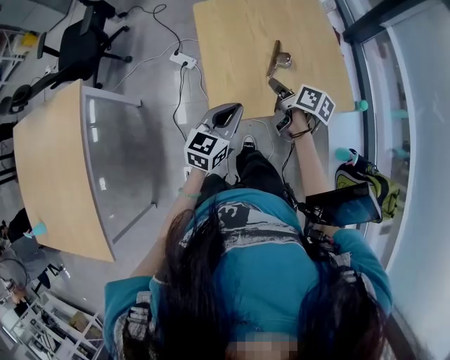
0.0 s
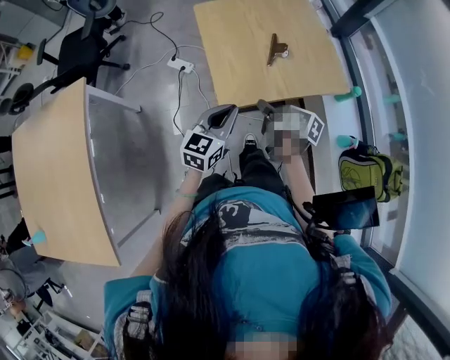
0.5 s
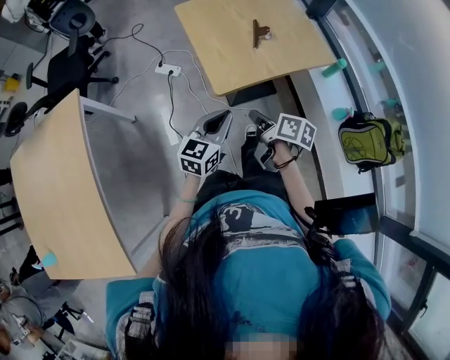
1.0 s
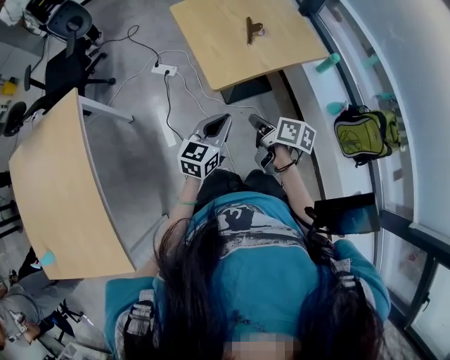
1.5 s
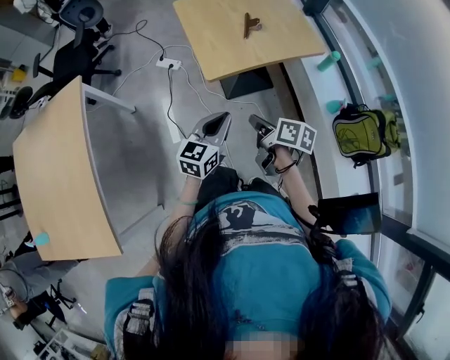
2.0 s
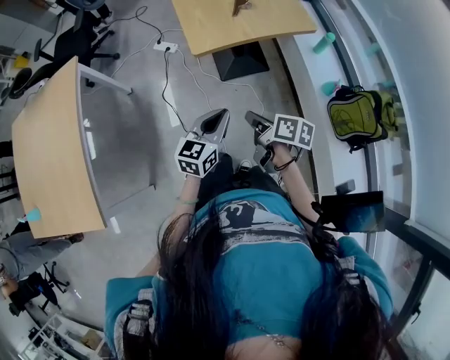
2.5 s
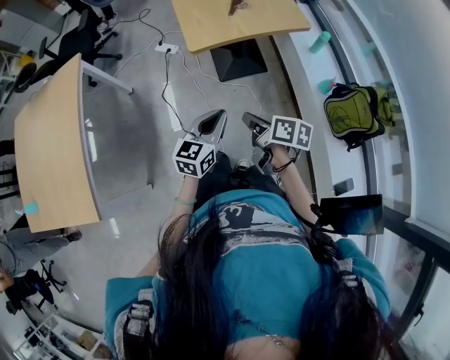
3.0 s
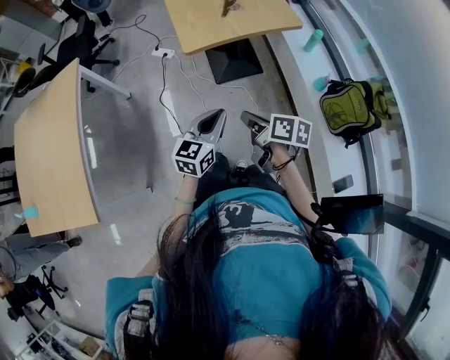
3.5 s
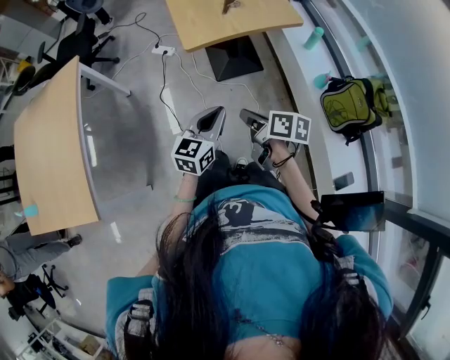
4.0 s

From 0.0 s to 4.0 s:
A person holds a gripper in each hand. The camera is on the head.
From 0.0 s to 2.0 s: The two grippers go approximately 30 cm backward.
From 2.0 s to 4.0 s: The left gripper heads backward and to the right, covering roughly 20 cm. Meanwhile the right gripper travels backward by approximately 15 cm.

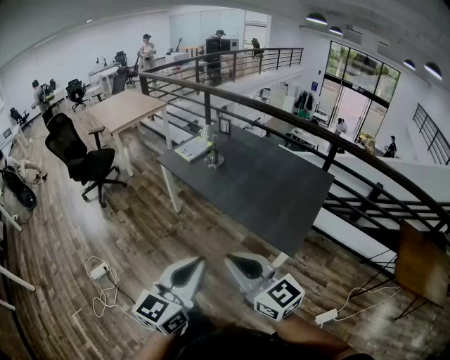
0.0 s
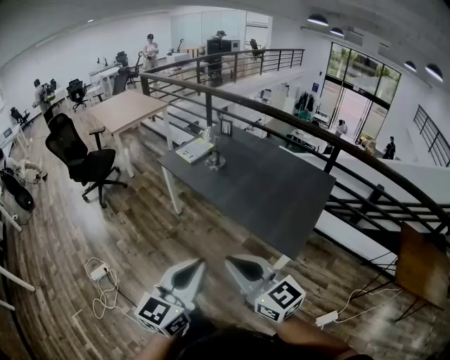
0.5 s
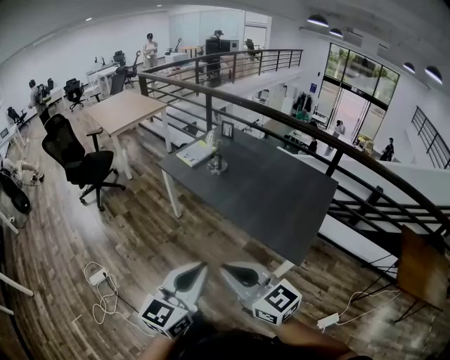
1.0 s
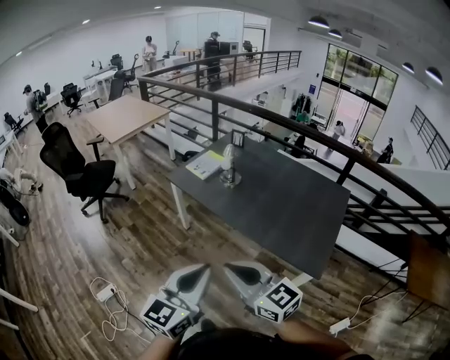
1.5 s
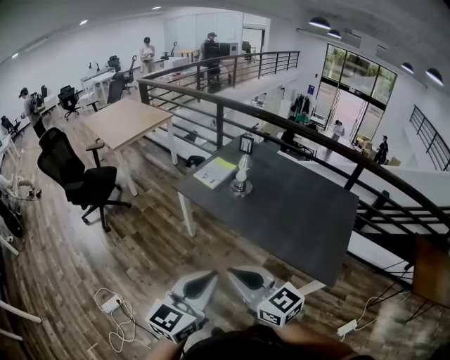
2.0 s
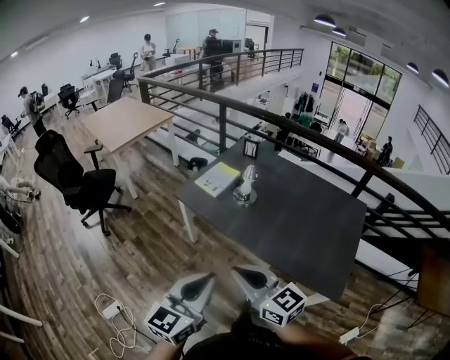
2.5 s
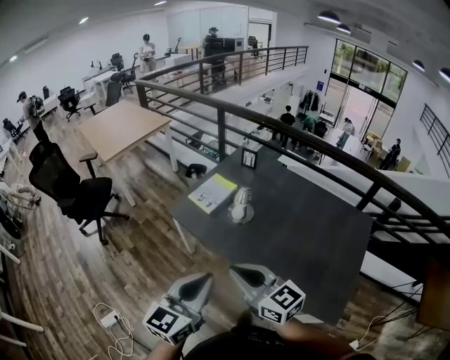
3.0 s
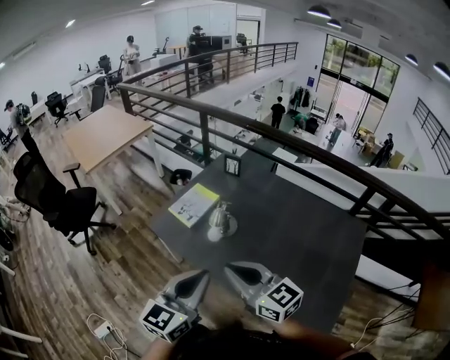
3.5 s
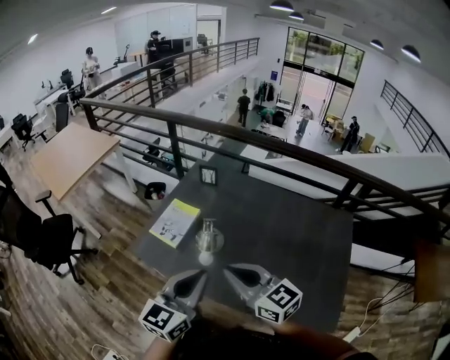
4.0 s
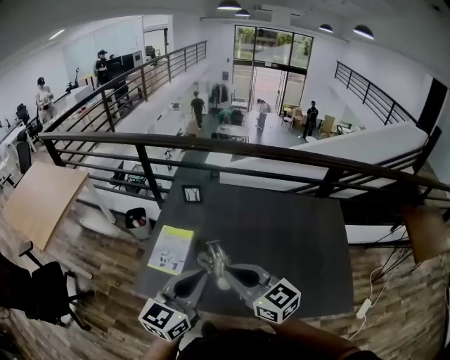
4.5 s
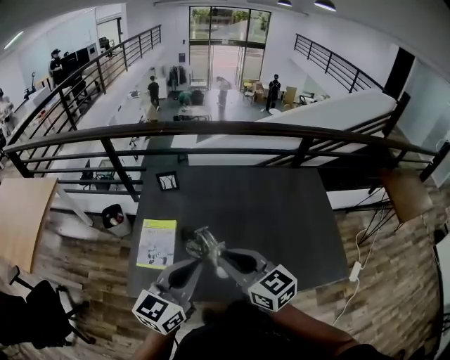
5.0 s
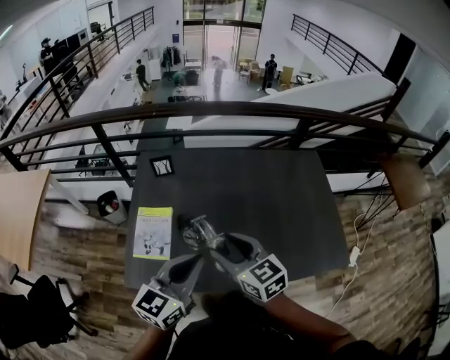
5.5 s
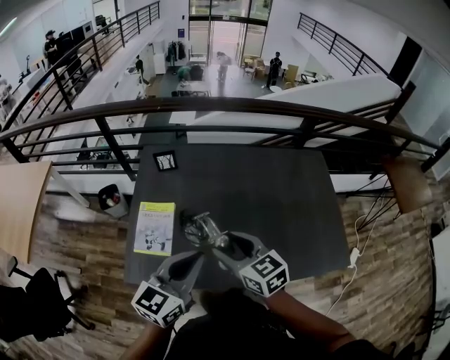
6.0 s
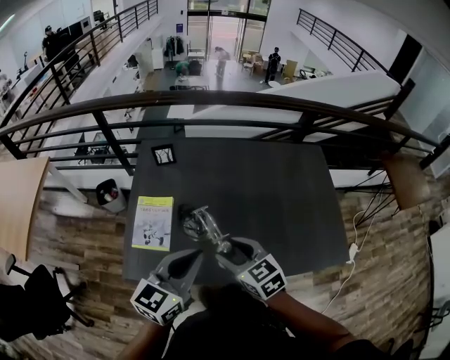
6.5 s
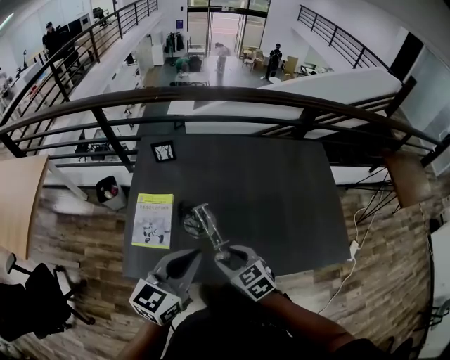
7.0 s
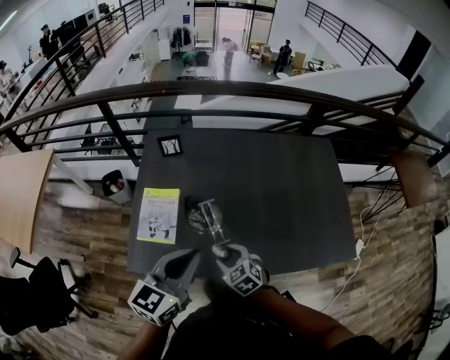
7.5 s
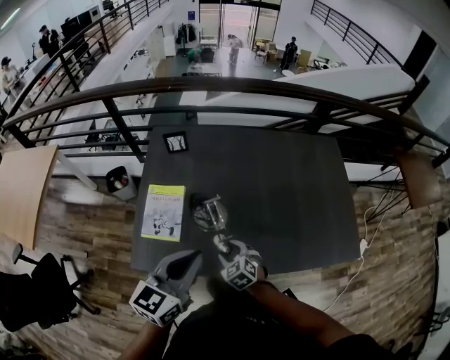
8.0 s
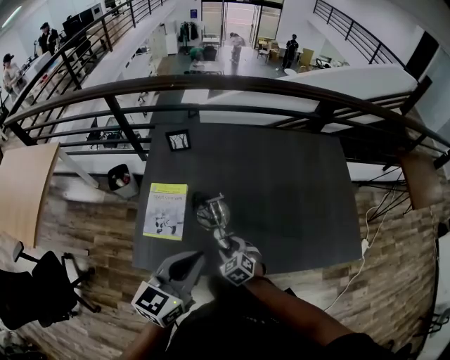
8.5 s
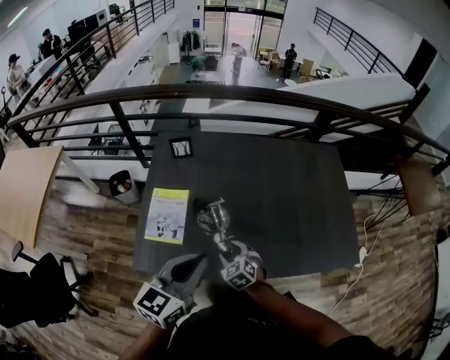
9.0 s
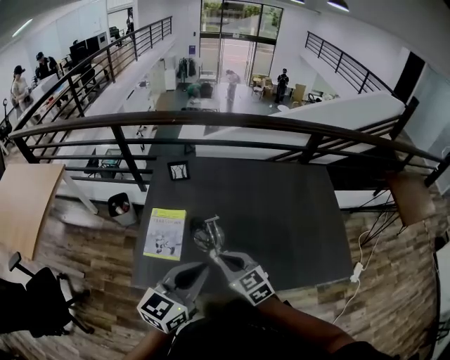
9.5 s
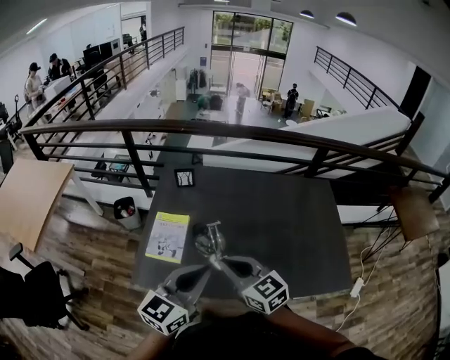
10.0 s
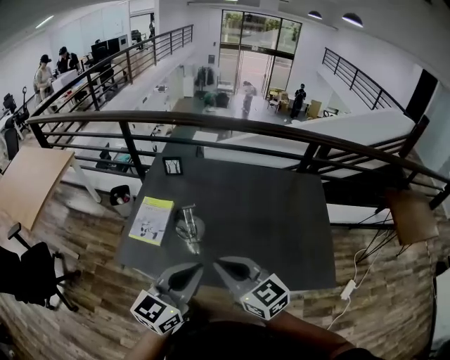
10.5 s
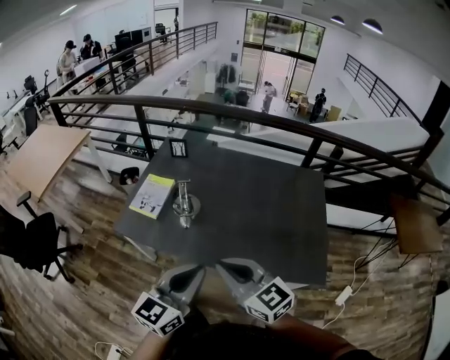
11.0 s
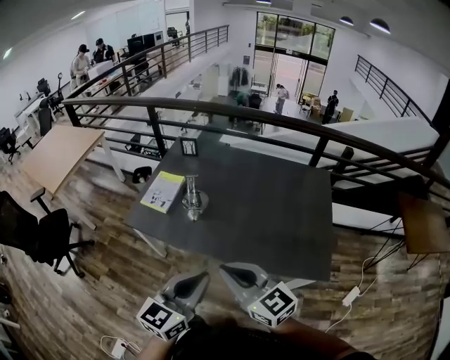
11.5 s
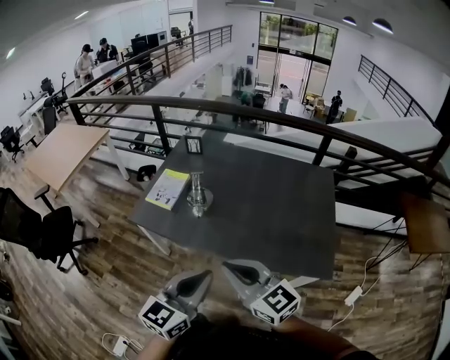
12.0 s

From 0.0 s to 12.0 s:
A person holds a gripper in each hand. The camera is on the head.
From 0.0 s to 2.0 s: The grippers both shift forward and to the left by approximately 25 cm.
From 2.0 s to 4.0 s: The pair of grippers is taken forward, approximately 40 cm.
From 4.0 s to 6.0 s: The left gripper changes place by approximately 10 cm, and changes its angle by some 30 degrees. The right gripper shifts by roughly 15 cm, turns by some 40 degrees, and opens.
From 6.0 s to 8.0 s: The right gripper moves downward, approximately 25 cm, and turns by approximately 30 degrees.
From 8.0 s to 10.0 s: The left gripper shifts approximately 5 cm upward; the right gripper travels upward by roughly 25 cm, points its fingers approximately 30 degrees further upward, and closes up.
From 10.0 s to 12.0 s: Both grippers move backward and to the right, about 30 cm.

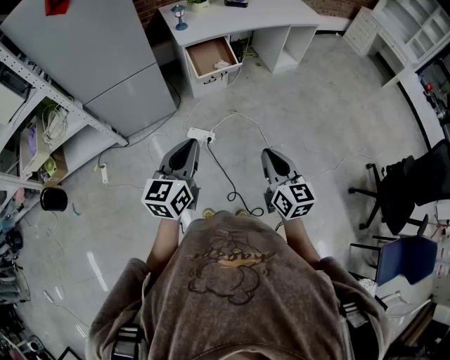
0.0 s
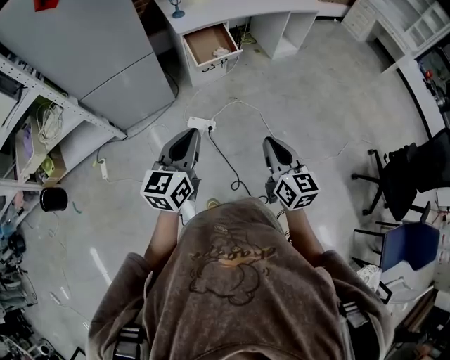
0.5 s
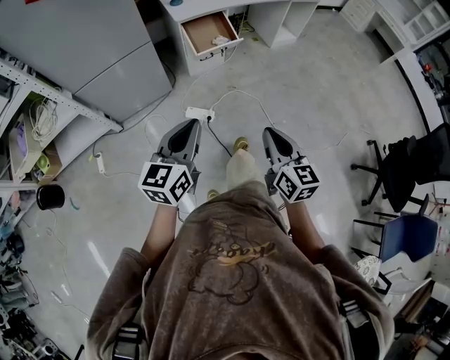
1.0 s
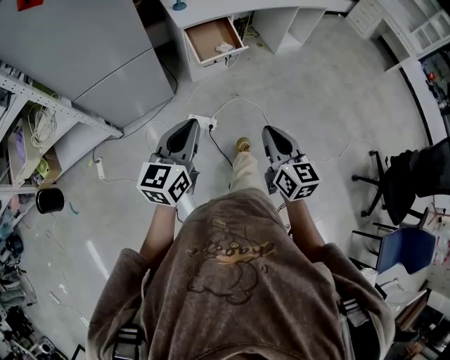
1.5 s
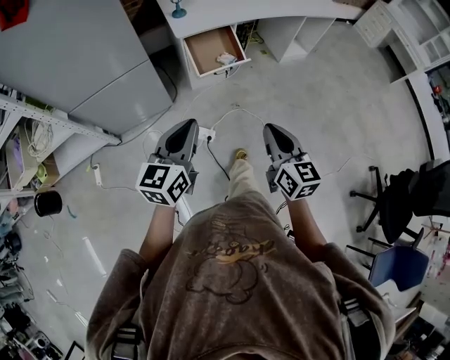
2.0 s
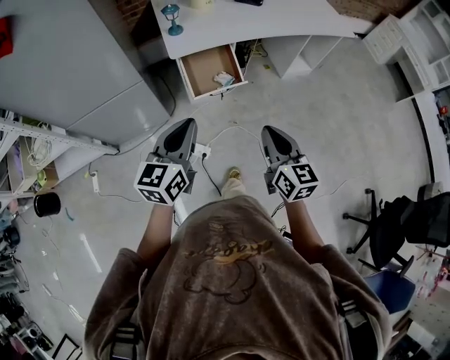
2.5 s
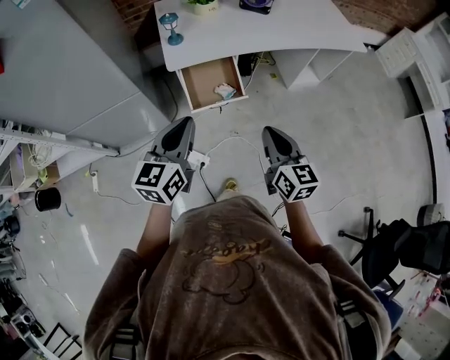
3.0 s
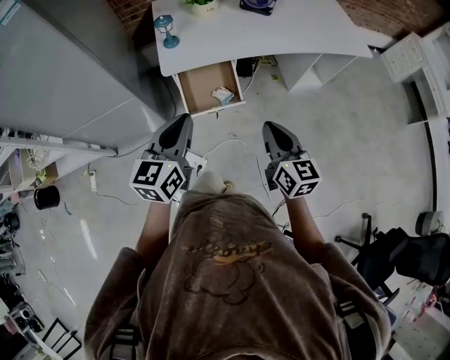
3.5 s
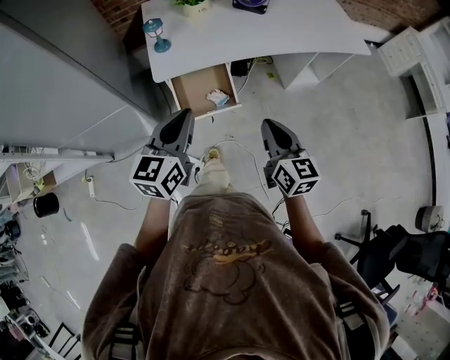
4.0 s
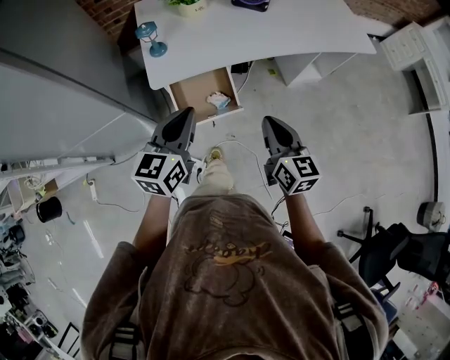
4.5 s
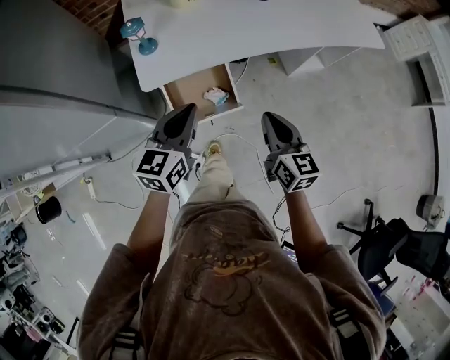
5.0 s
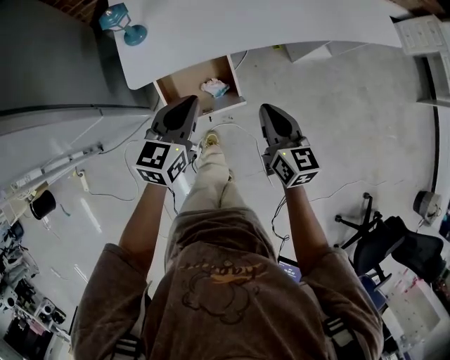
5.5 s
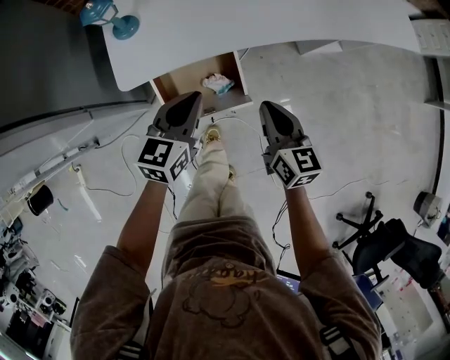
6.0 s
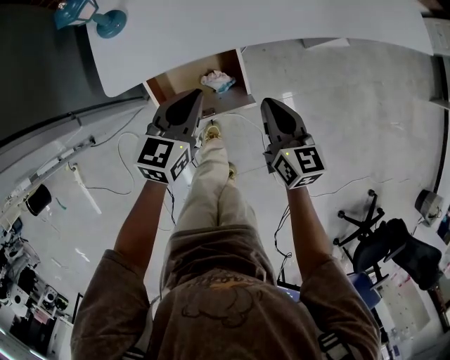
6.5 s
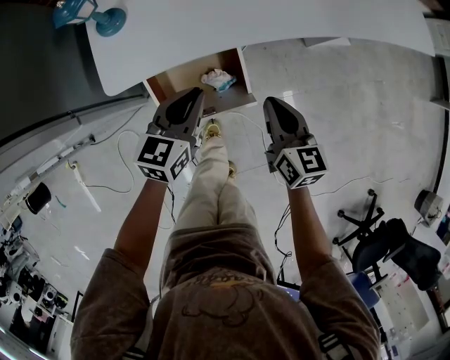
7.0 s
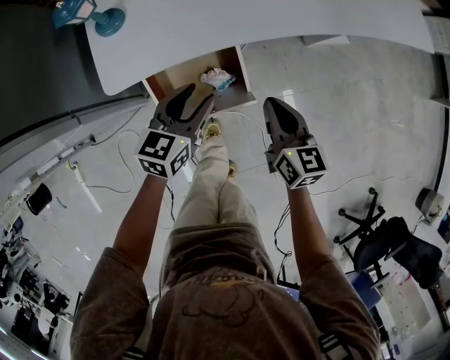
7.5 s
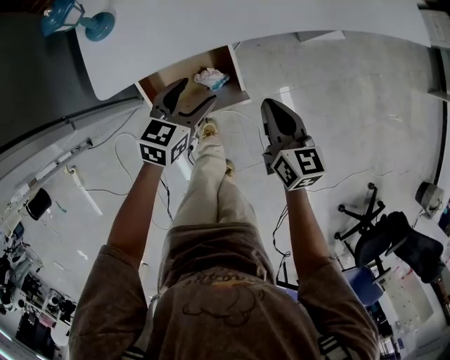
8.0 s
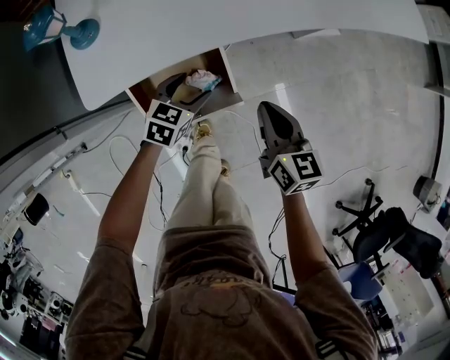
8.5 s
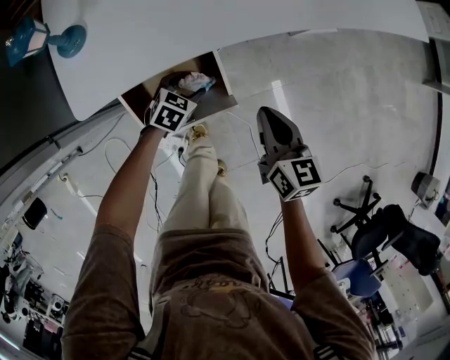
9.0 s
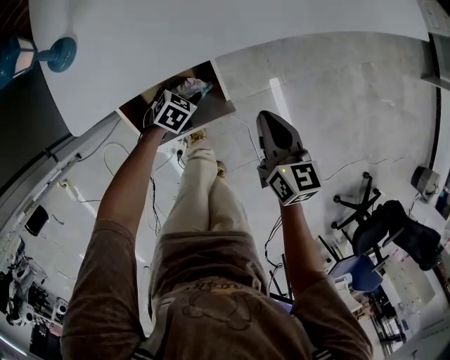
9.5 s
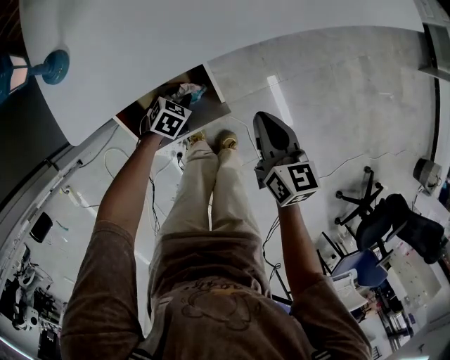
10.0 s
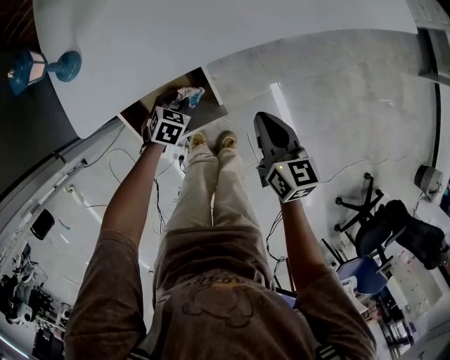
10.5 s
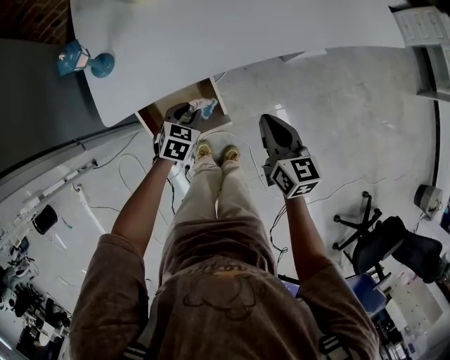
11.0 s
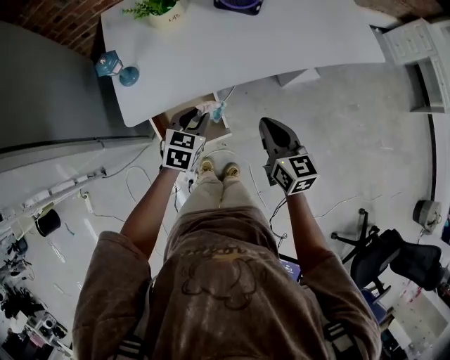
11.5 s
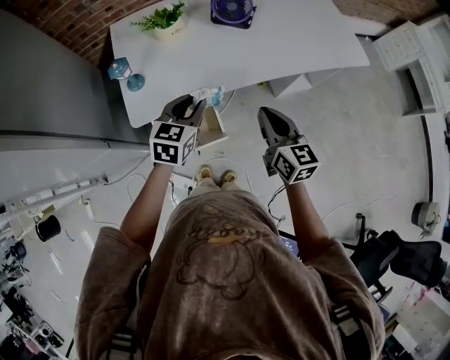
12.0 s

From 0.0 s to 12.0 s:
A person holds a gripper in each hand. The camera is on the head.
From 0.0 s to 2.0 s: Both grippers travel together forward, some 20 cm.
From 2.0 s to 4.0 s: The grippers both shift forward and to the right by some 35 cm.
From 4.0 s to 6.0 s: Both grippers move downward and forward, some 30 cm.
From 6.0 s to 8.0 s: The right gripper is displaced downward by some 5 cm. The left gripper is displaced downward by roughly 10 cm, and opens its fingers.
From 8.0 s to 10.0 s: The left gripper is displaced downward by some 20 cm, turns by roughly 40 degrees, and closes up.
From 10.0 s to 12.0 s: The right gripper goes some 25 cm upward, and rotates approximately 20 degrees. Meanwhile the left gripper is displaced upward by some 50 cm, and tips its fingers upward by some 30 degrees.
